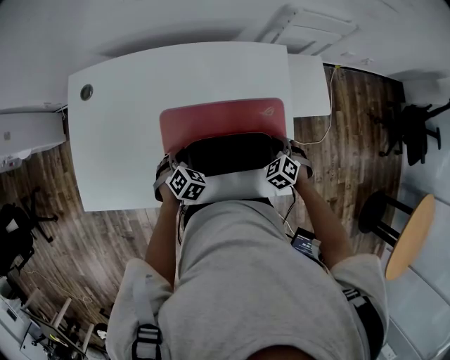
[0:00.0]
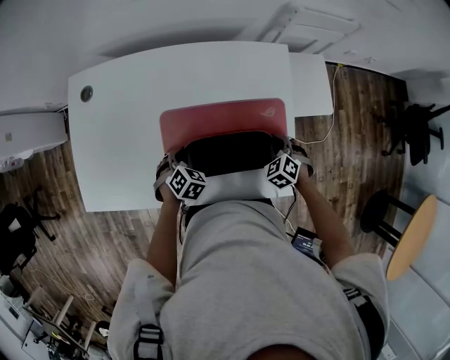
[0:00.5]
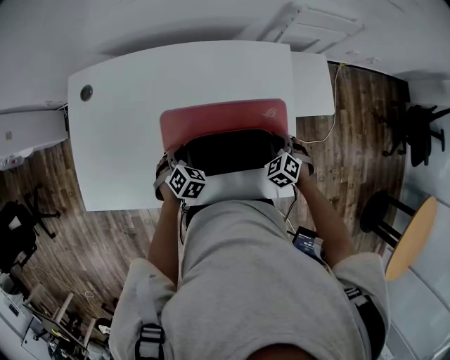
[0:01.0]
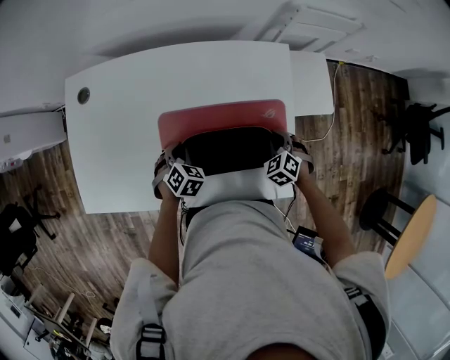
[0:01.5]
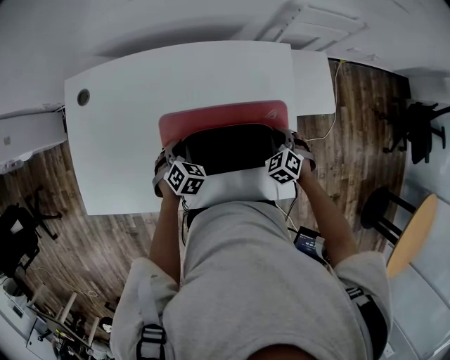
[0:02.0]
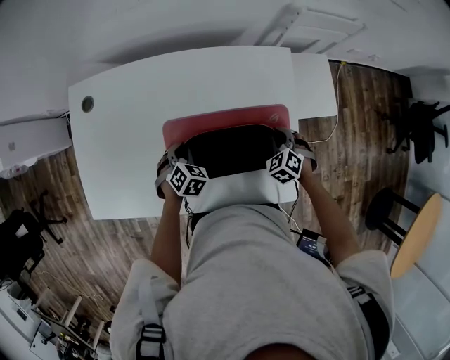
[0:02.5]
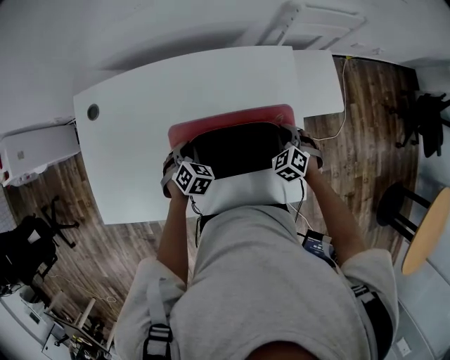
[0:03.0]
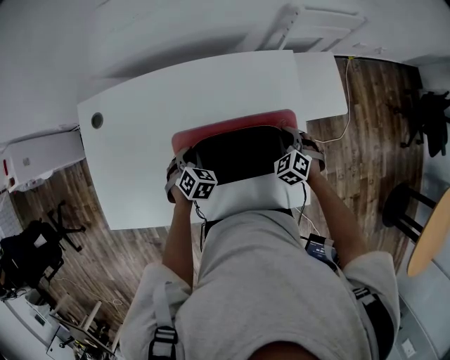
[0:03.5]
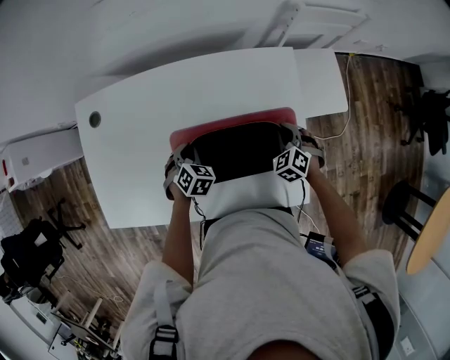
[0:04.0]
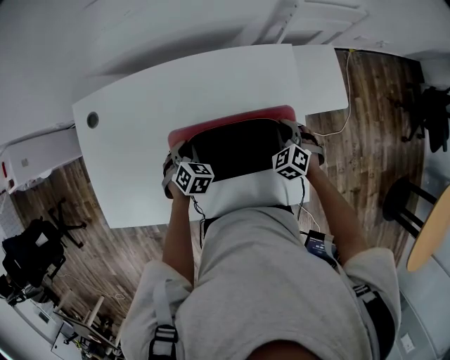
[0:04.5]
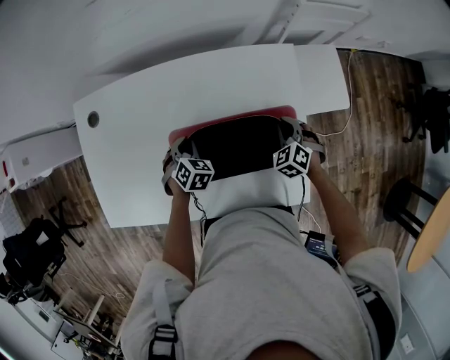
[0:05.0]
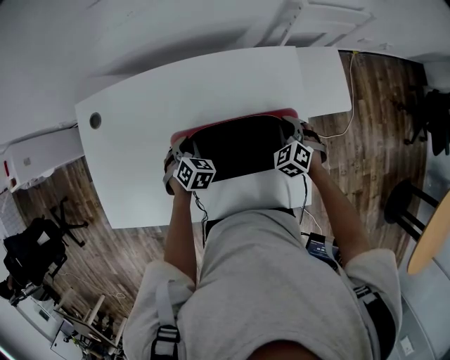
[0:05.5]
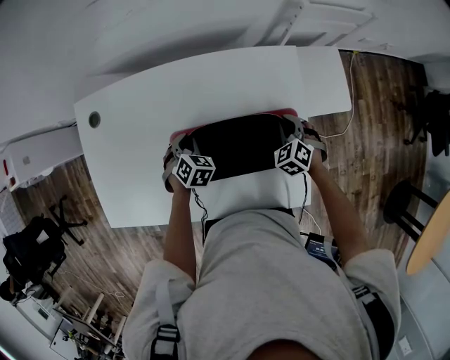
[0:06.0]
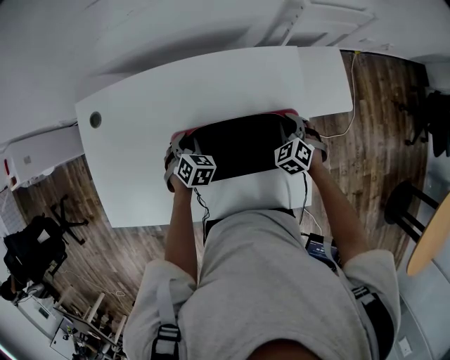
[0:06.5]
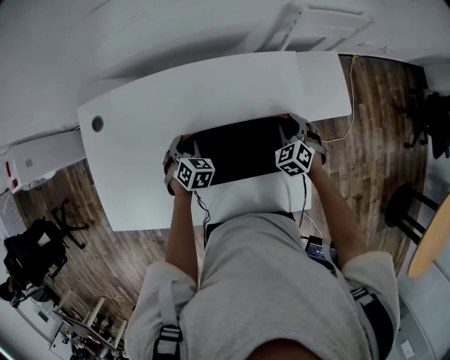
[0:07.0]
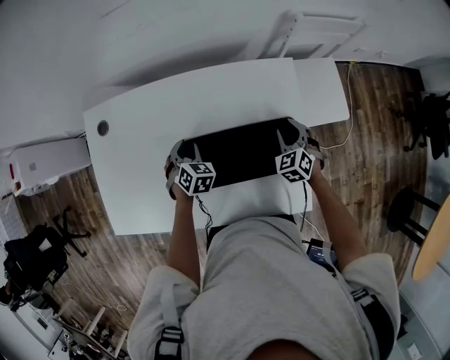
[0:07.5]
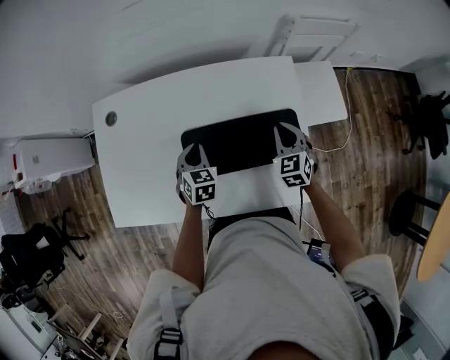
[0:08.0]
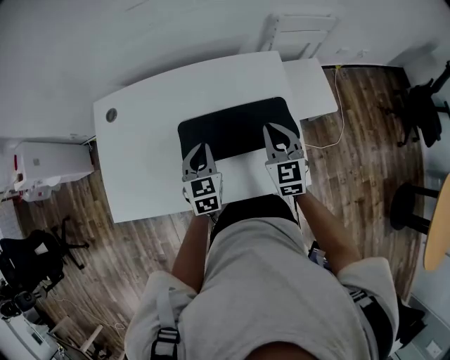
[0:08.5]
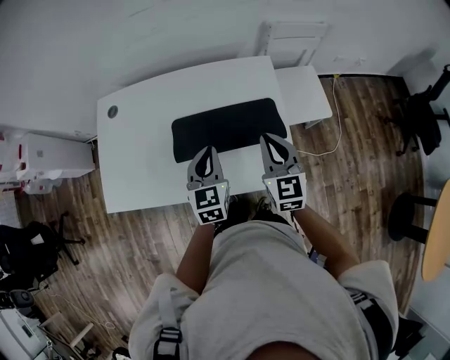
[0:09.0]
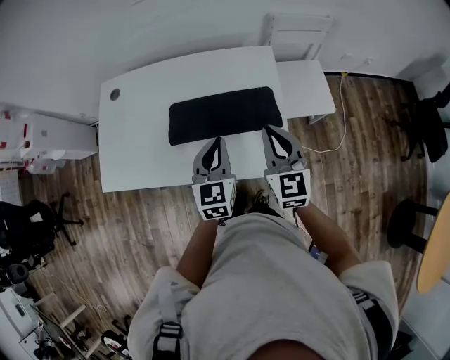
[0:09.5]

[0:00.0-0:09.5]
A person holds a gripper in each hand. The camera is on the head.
0:00.0 to 0:02.0: There are only small adjustments of the grippers.
0:02.0 to 0:04.0: The grippers move only a little.
0:04.0 to 0:05.5: The grippers make only small movements.
0:05.5 to 0:07.5: The right gripper opens its fingers; the left gripper opens its fingers.
0:07.5 to 0:09.5: The left gripper heads upward, backward and to the right, covering approximately 35 cm, tips its fingers upward by some 40 degrees, and closes its fingers. Meanwhile the right gripper moves upward and backward, some 30 cm, points its fingers approximately 30 degrees further upward, and closes up.

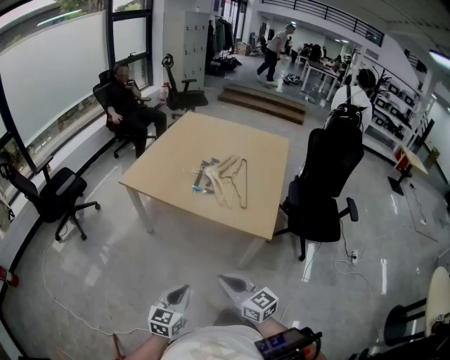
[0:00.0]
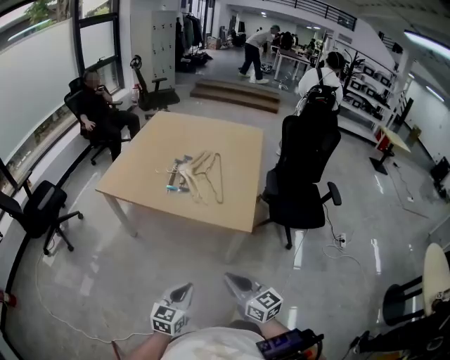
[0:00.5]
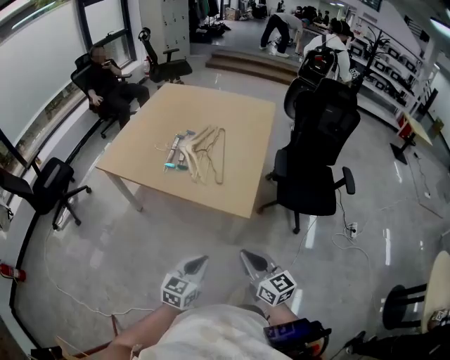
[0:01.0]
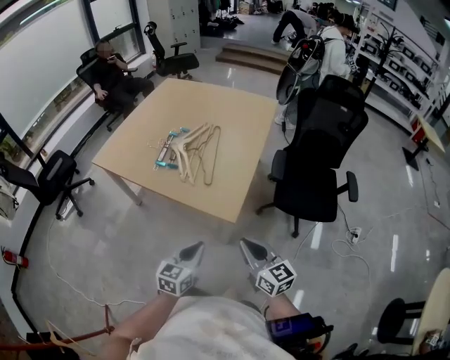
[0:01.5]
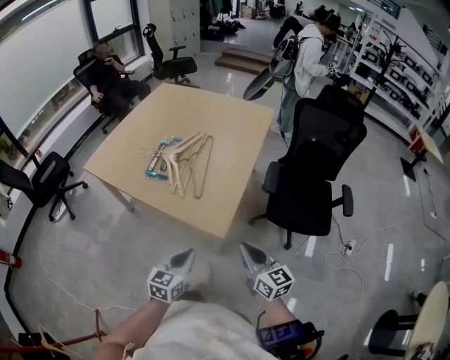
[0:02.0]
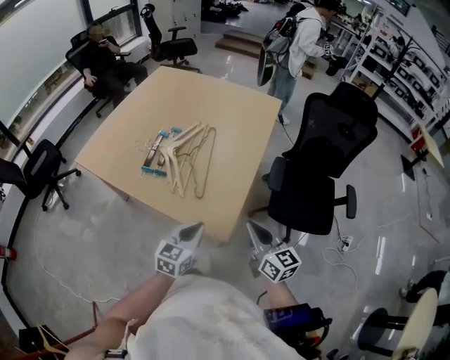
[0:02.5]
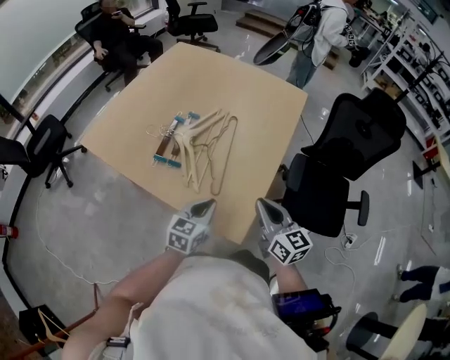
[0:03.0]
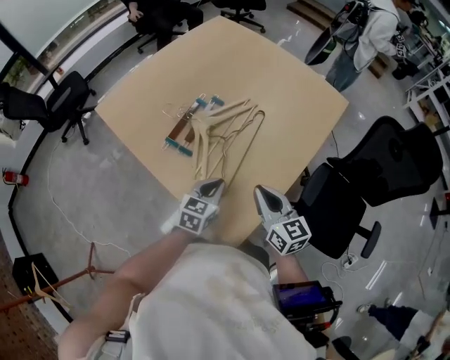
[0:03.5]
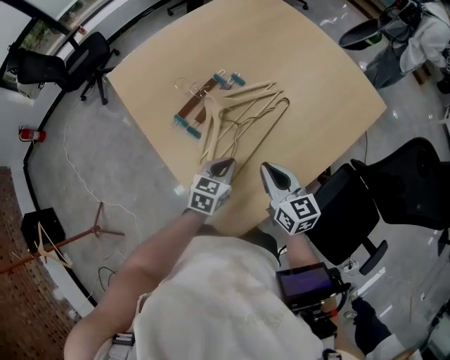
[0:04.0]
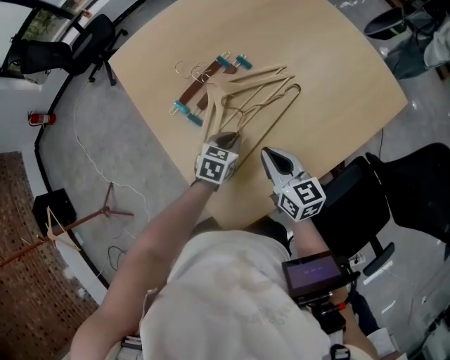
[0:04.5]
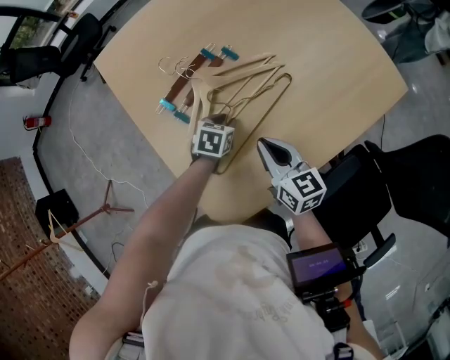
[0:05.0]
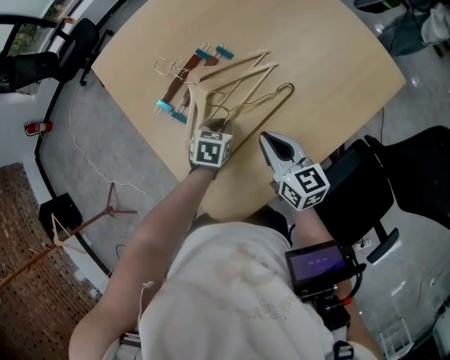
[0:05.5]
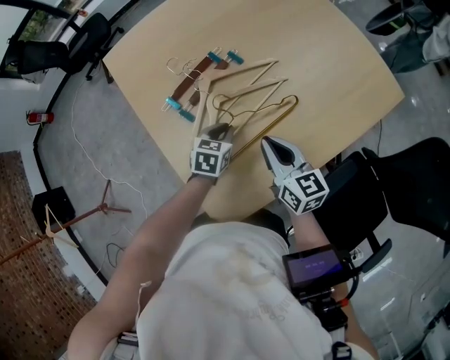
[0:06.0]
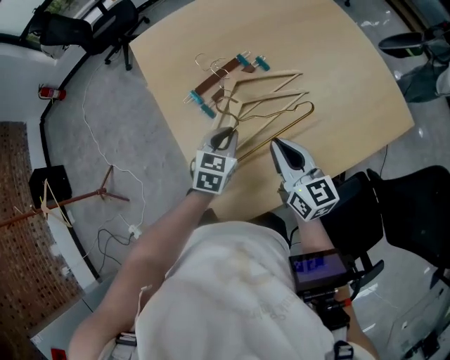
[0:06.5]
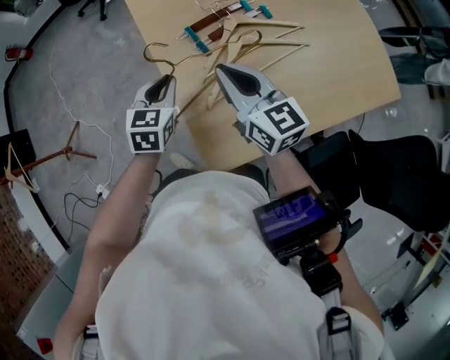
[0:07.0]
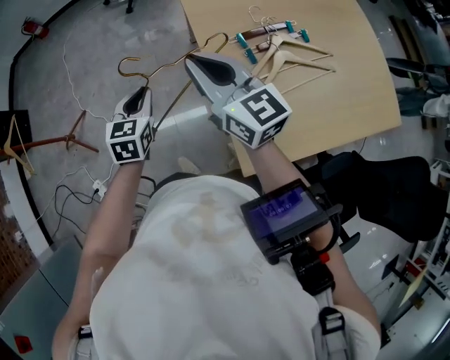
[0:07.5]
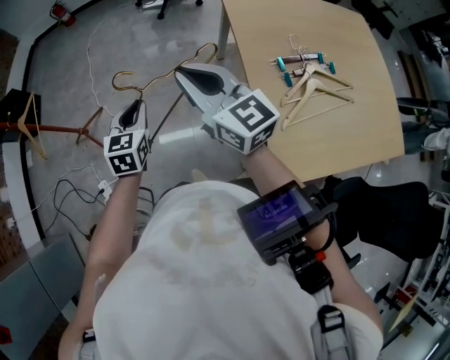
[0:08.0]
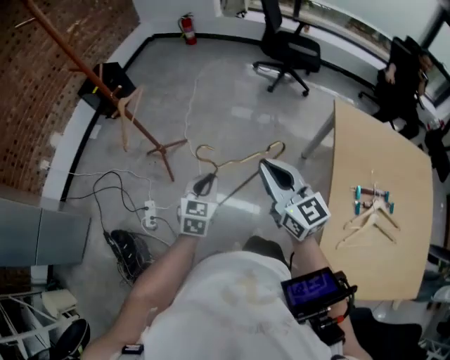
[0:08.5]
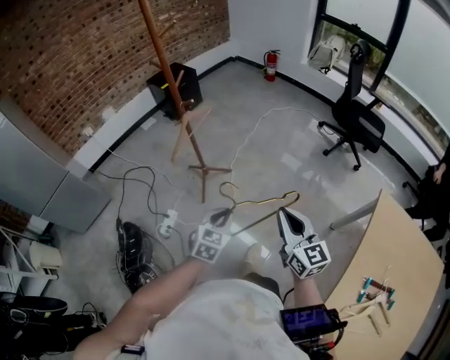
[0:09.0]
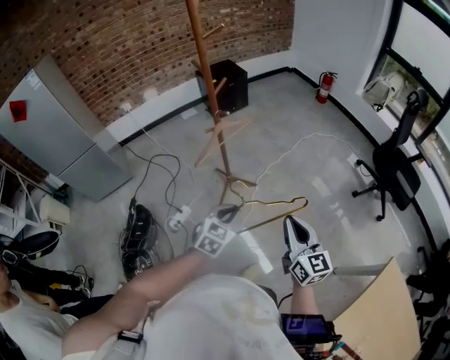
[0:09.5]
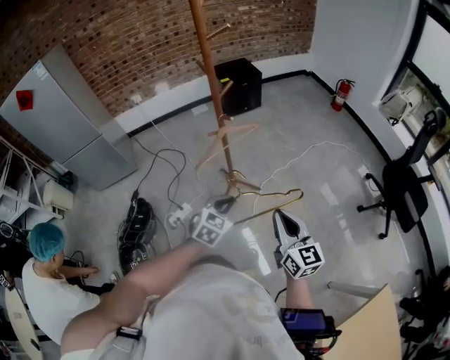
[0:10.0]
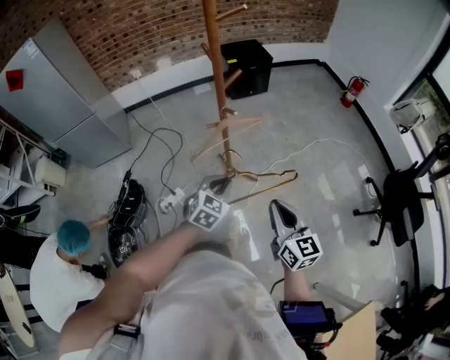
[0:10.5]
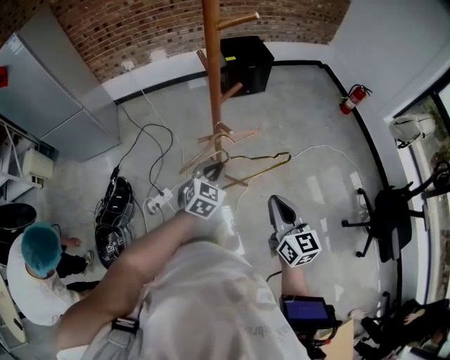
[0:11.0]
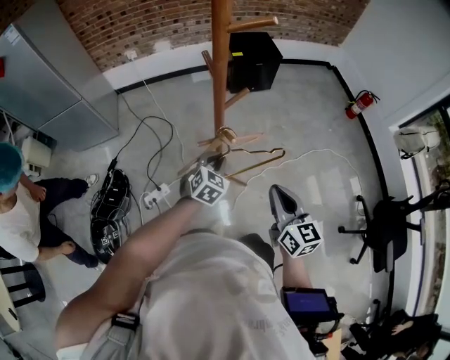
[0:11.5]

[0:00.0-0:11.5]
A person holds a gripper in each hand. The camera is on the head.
0:00.0 to 0:02.0: Both grippers move to the right and forward, roughly 35 cm.
0:02.0 to 0:04.0: The right gripper shifts by some 40 cm, and turns by some 30 degrees; the left gripper changes place by approximately 40 cm, and changes its angle by some 30 degrees.
0:04.0 to 0:06.0: The right gripper changes place by some 5 cm; the left gripper goes roughly 5 cm forward.
0:06.0 to 0:07.5: Both grippers are carried roughly 40 cm. The left gripper swivels roughly 40 degrees; the right gripper changes its angle by about 40 degrees.
0:07.5 to 0:09.5: The two grippers travel together, approximately 50 cm. The right gripper rotates about 50 degrees. The left gripper turns by approximately 50 degrees.
0:09.5 to 0:11.5: Both grippers move forward, about 35 cm. The right gripper rotates roughly 20 degrees. The left gripper turns by some 20 degrees.

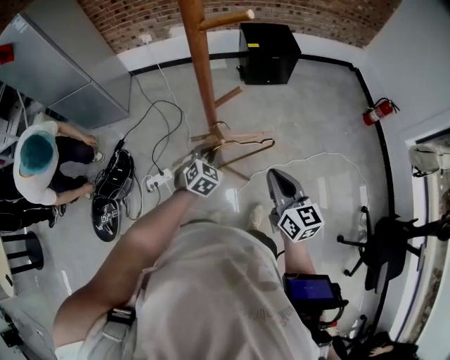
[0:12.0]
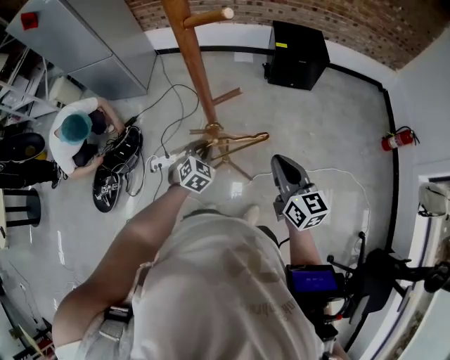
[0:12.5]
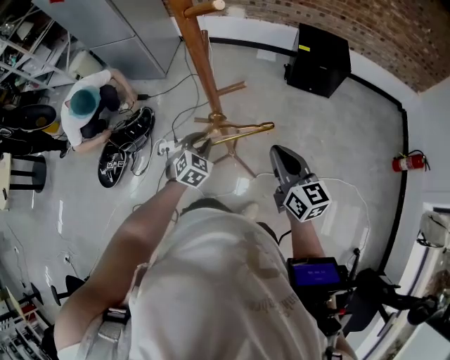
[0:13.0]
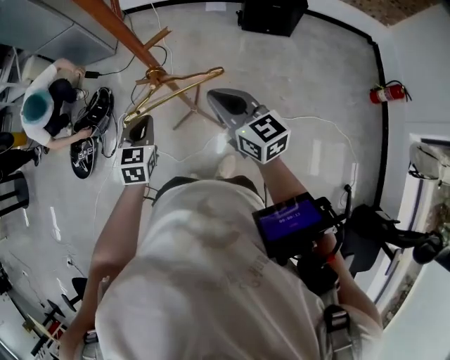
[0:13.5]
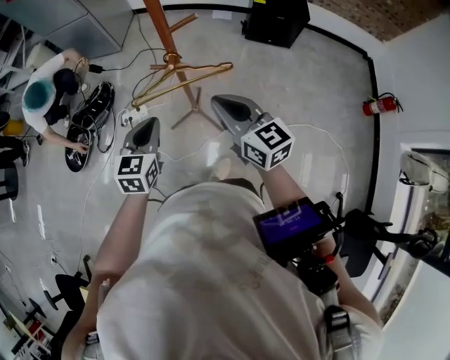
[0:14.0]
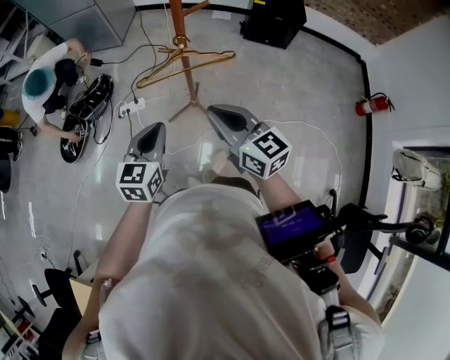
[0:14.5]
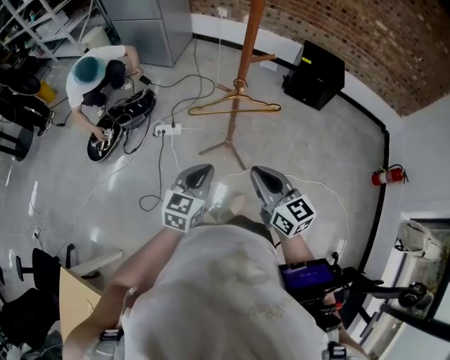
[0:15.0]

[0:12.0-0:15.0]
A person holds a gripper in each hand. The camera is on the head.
0:12.0 to 0:13.5: The left gripper changes place by roughly 10 cm, and turns by about 40 degrees, while the right gripper changes place by roughly 10 cm, and rotates roughly 30 degrees.
0:13.5 to 0:15.0: The left gripper moves backward, about 20 cm, and turns by approximately 20 degrees; the right gripper goes roughly 20 cm backward and to the left.

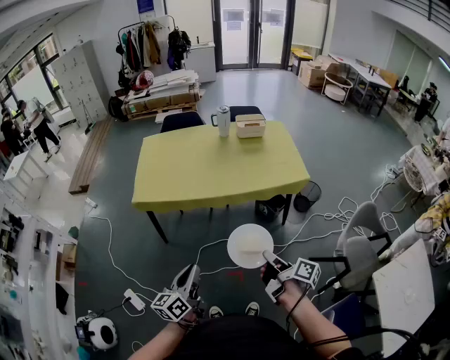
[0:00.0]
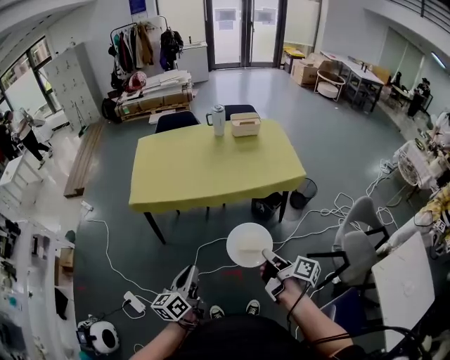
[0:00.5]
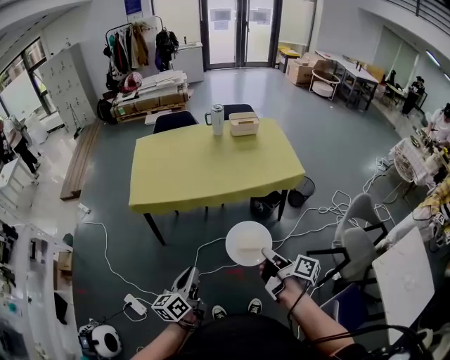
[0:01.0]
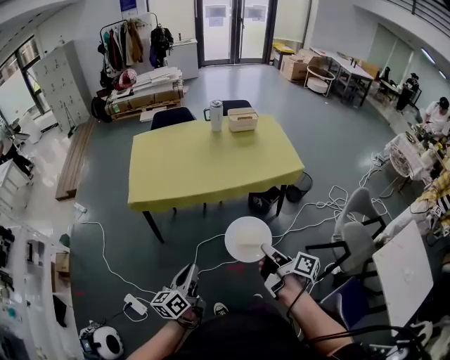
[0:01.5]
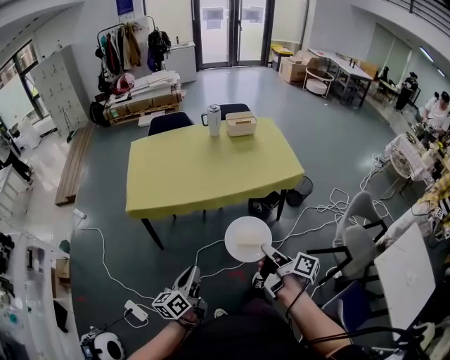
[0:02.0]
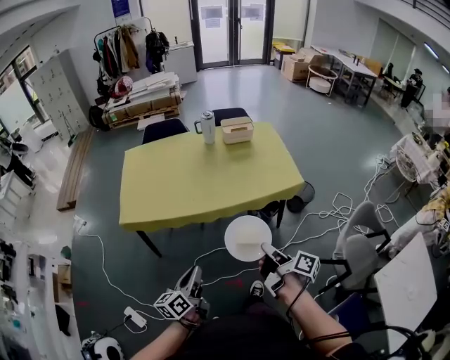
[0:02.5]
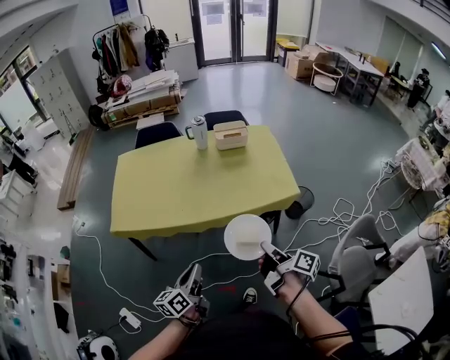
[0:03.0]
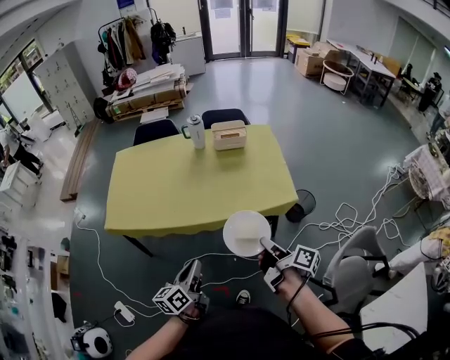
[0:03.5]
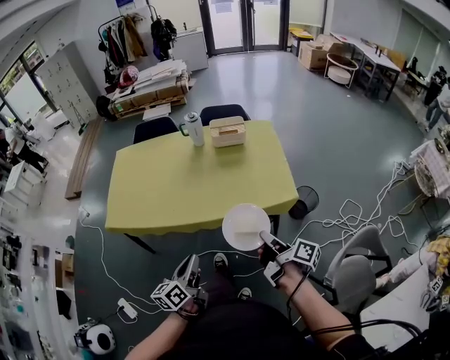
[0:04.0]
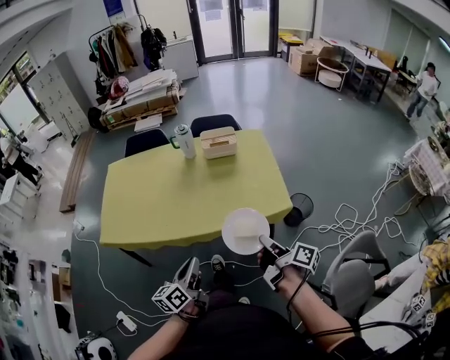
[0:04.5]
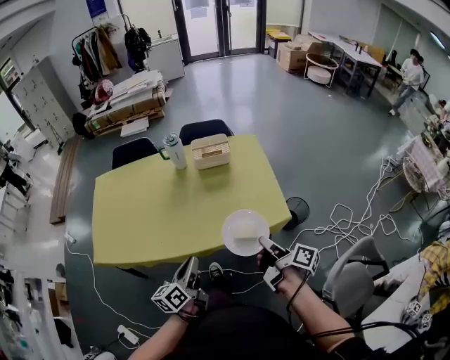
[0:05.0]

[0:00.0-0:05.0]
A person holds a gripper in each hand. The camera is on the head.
0:00.0 to 0:02.5: The left gripper moves forward and downward, approximately 15 cm; the right gripper goes some 10 cm forward.
0:02.5 to 0:05.0: Both grippers move forward and to the right, some 35 cm.